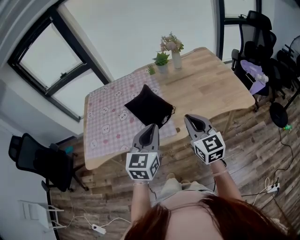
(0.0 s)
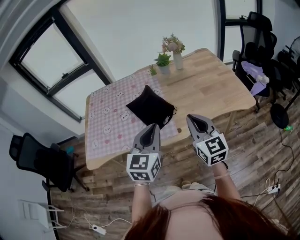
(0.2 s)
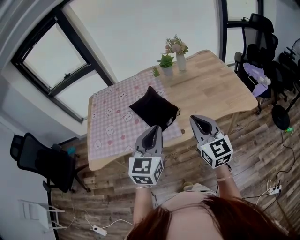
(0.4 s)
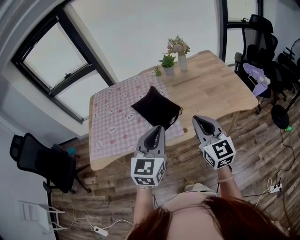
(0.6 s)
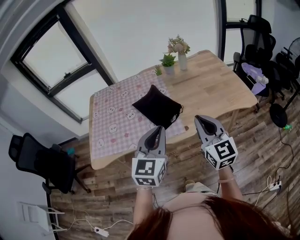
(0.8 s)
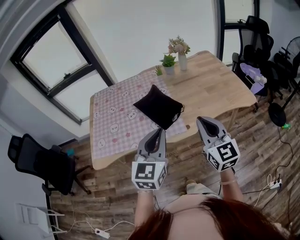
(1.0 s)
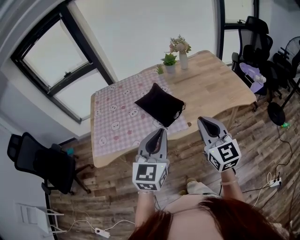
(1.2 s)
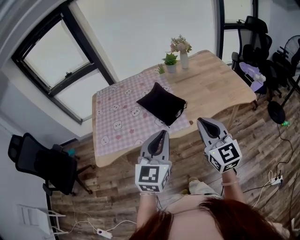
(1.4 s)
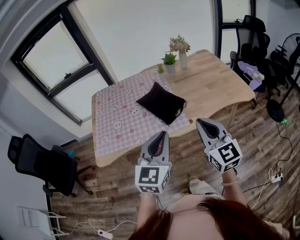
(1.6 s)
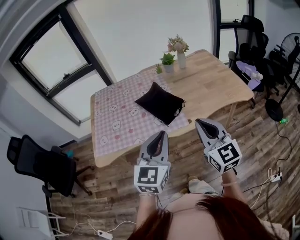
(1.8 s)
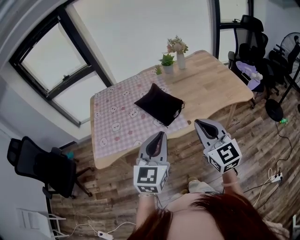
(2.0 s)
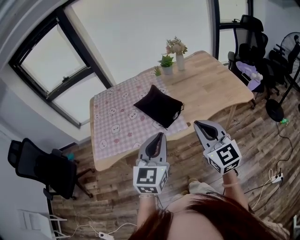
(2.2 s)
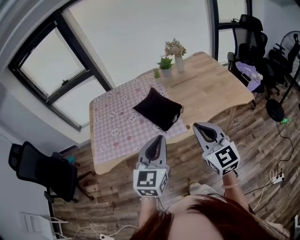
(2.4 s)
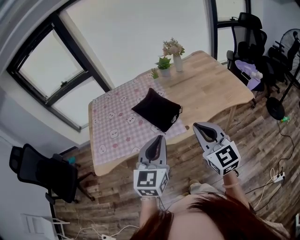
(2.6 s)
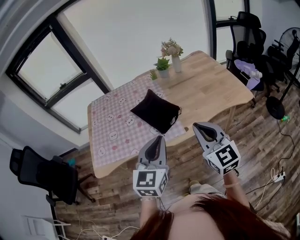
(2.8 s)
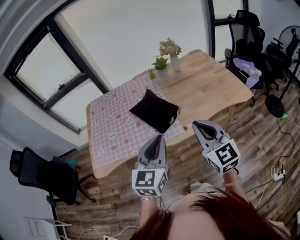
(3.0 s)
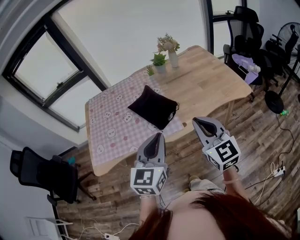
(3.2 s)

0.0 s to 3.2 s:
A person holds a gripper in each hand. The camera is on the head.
0.0 to 1.6 s: The right gripper shifts about 15 cm backward, to the left and upward. Meanwhile the left gripper is displaced backward and to the left by roughly 15 cm.
1.6 to 3.2 s: The left gripper moves approximately 5 cm. Meanwhile the right gripper changes place by approximately 5 cm.

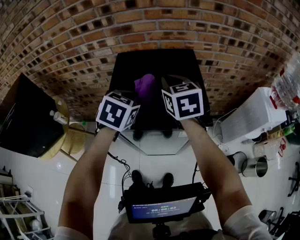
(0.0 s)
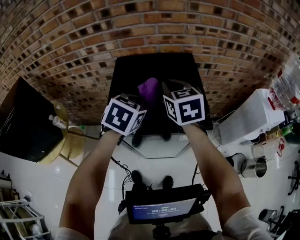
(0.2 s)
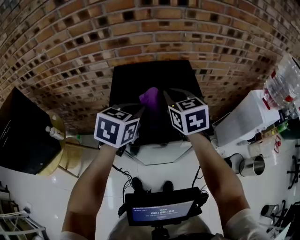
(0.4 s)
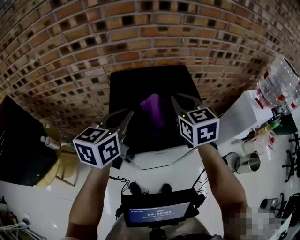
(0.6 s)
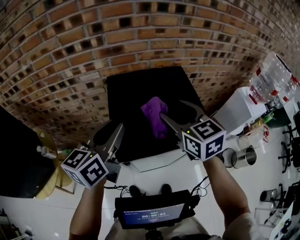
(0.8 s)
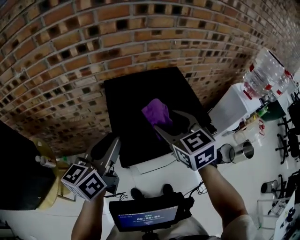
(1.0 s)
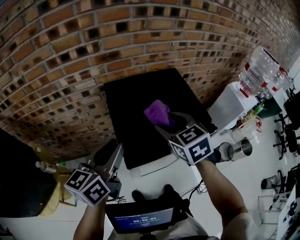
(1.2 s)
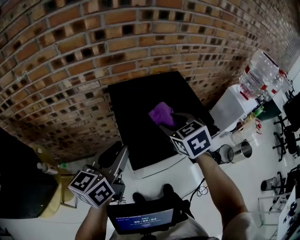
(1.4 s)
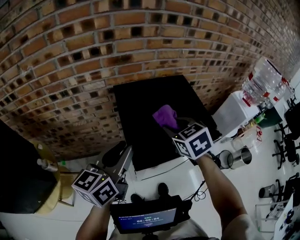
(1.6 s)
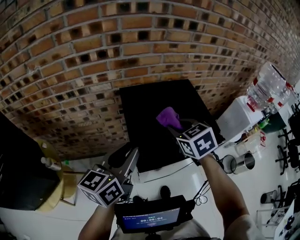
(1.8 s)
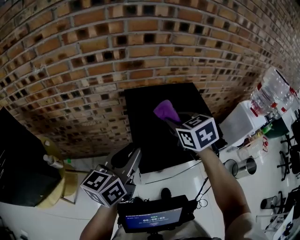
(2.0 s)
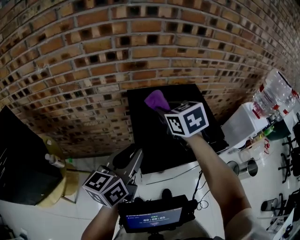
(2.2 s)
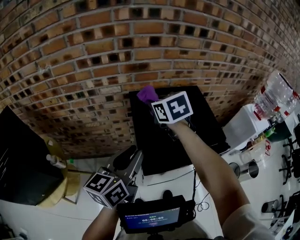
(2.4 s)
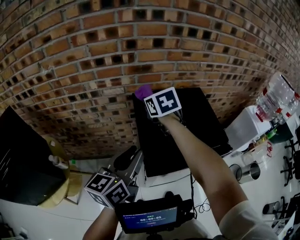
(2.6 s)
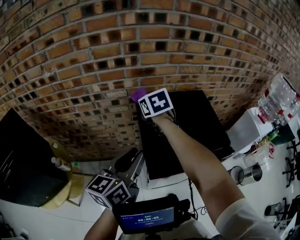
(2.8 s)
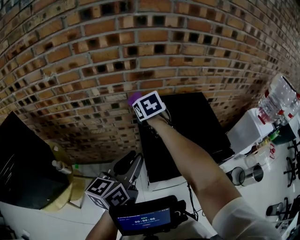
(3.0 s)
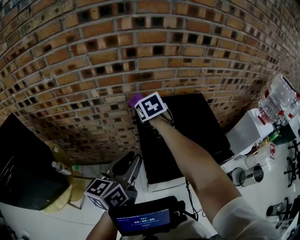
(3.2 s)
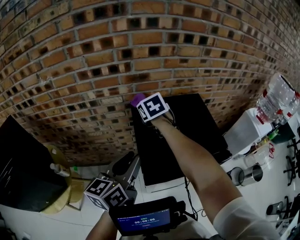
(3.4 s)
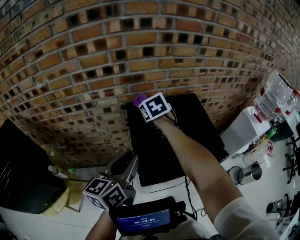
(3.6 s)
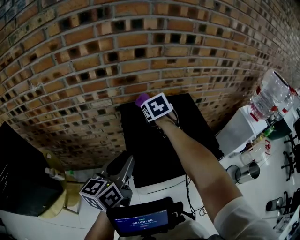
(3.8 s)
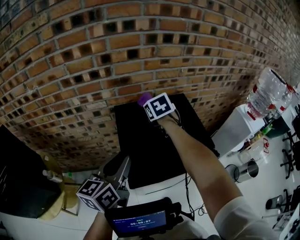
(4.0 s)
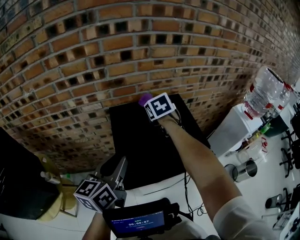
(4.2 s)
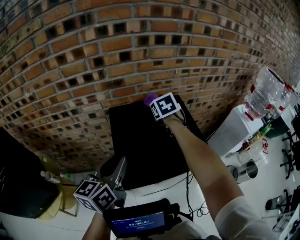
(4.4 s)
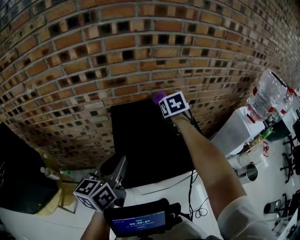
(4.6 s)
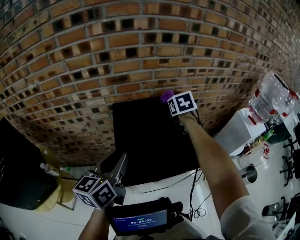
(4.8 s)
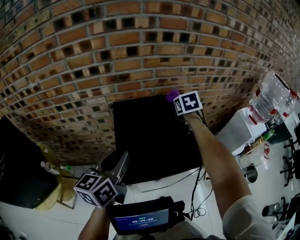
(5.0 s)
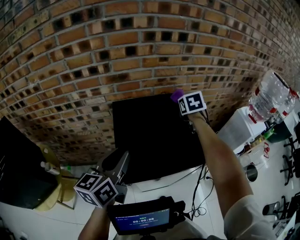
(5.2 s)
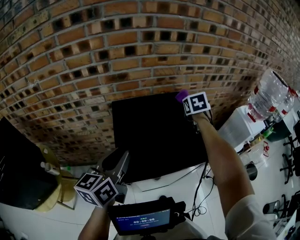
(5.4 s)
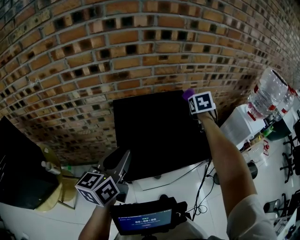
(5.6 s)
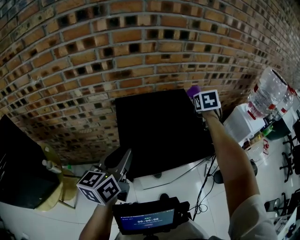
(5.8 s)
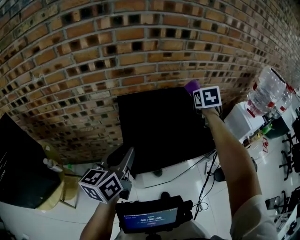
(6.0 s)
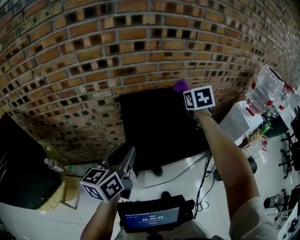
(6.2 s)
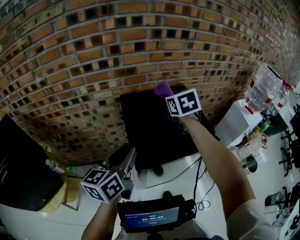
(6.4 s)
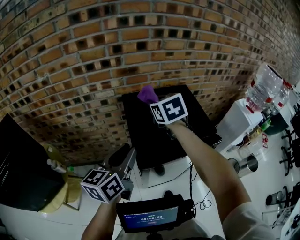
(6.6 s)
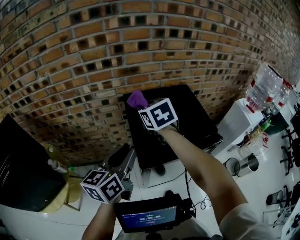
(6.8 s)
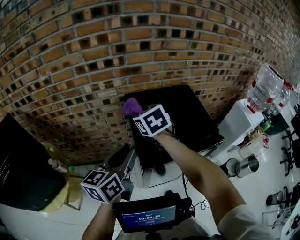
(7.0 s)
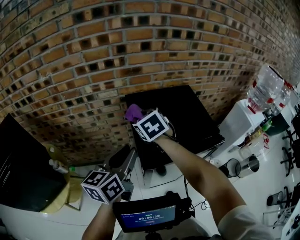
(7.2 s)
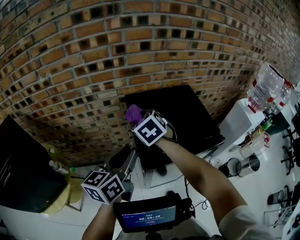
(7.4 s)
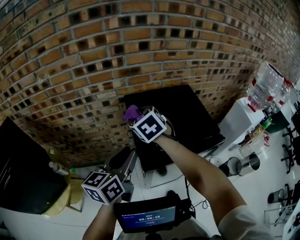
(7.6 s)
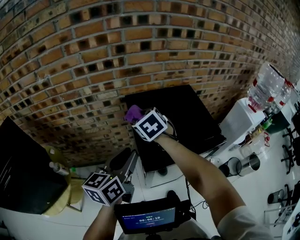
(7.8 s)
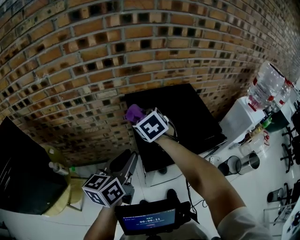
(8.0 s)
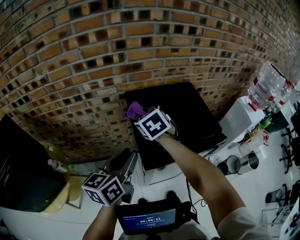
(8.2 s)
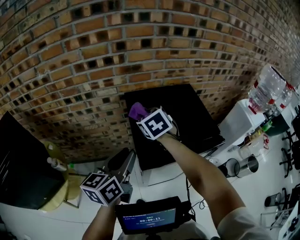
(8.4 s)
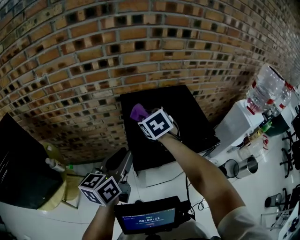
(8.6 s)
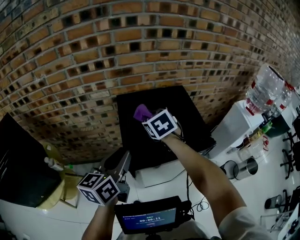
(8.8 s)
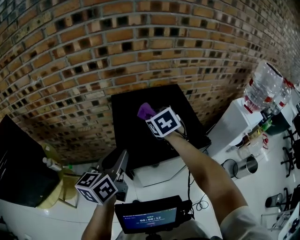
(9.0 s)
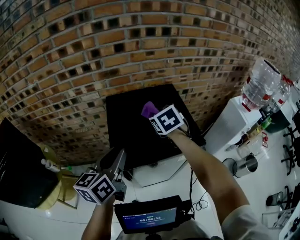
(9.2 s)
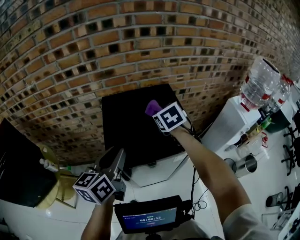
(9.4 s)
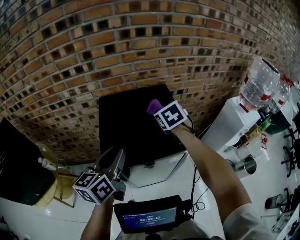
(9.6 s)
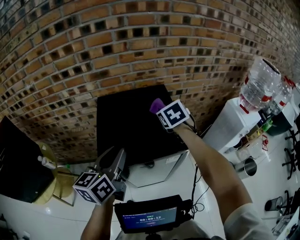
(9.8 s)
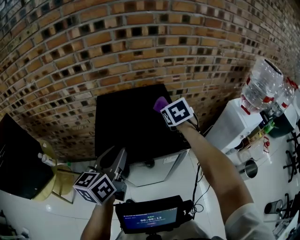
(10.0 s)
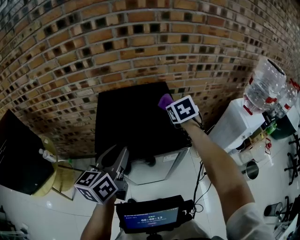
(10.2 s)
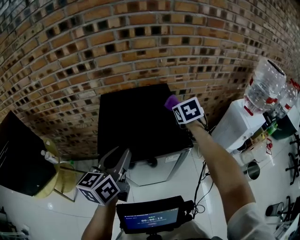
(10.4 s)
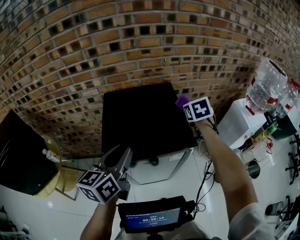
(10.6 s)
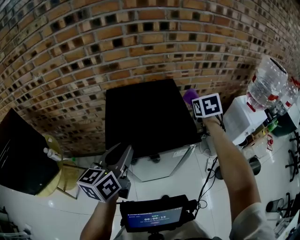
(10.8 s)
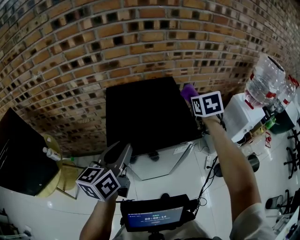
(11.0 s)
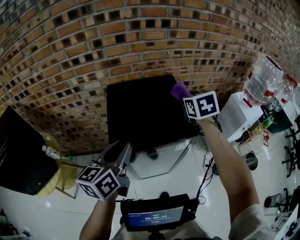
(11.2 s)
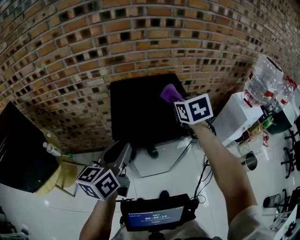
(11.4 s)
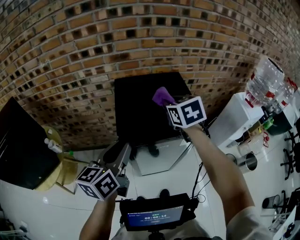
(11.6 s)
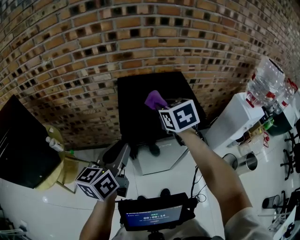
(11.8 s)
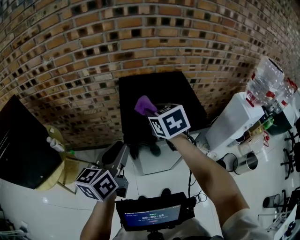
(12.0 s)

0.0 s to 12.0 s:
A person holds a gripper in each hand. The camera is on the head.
0.0 to 1.6 s: The right gripper travels backward by about 5 cm, and opens, while the left gripper shifts approximately 15 cm to the left, backward and upward, points its fingers about 40 degrees further upward, and opens up.
1.6 to 3.0 s: The right gripper is displaced to the left and forward by roughly 25 cm.
3.0 to 4.4 s: The right gripper goes about 20 cm to the right, while the left gripper shifts by about 5 cm.
4.4 to 6.0 s: The right gripper moves to the right, approximately 15 cm.
6.0 to 7.6 s: The right gripper goes some 35 cm to the left and backward, rotates roughly 30 degrees, and opens up.
7.6 to 9.0 s: The right gripper shifts some 15 cm to the right, and closes.
9.0 to 10.4 s: The right gripper travels to the right by some 20 cm. Meanwhile the left gripper is displaced to the right by approximately 10 cm.
10.4 to 12.0 s: The right gripper is displaced to the left and backward by roughly 30 cm. The left gripper moves to the left and backward, about 15 cm.

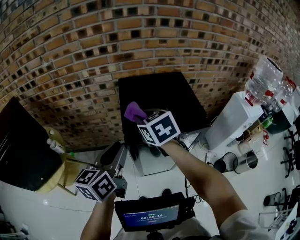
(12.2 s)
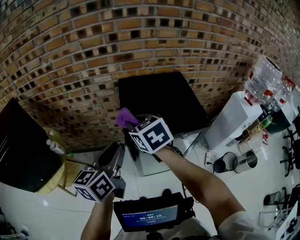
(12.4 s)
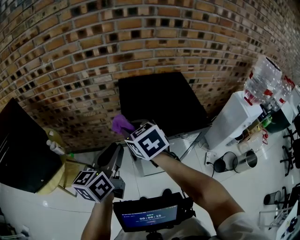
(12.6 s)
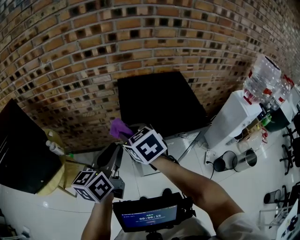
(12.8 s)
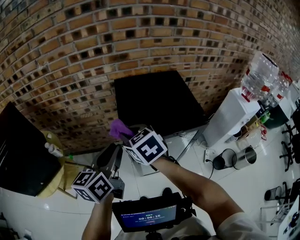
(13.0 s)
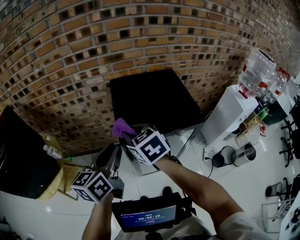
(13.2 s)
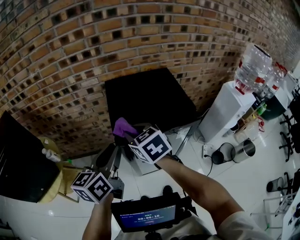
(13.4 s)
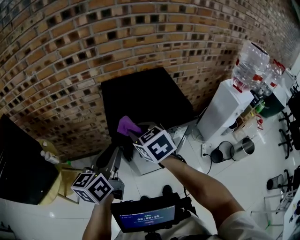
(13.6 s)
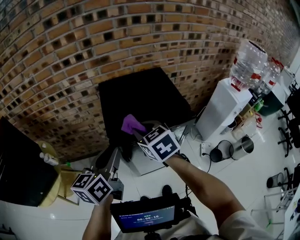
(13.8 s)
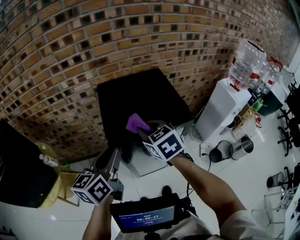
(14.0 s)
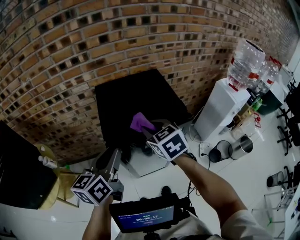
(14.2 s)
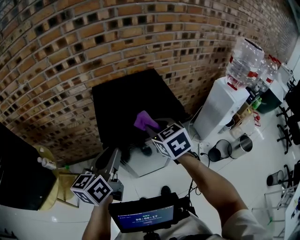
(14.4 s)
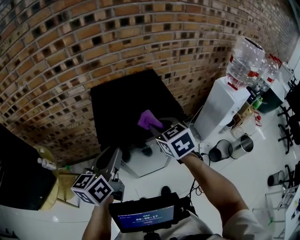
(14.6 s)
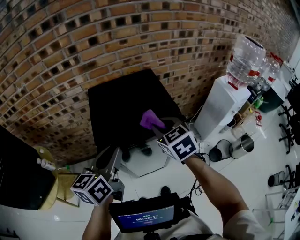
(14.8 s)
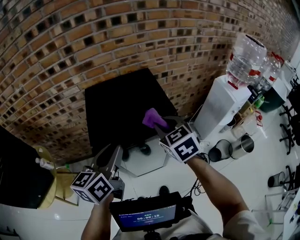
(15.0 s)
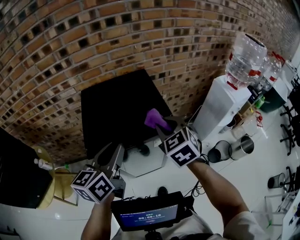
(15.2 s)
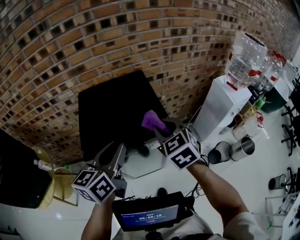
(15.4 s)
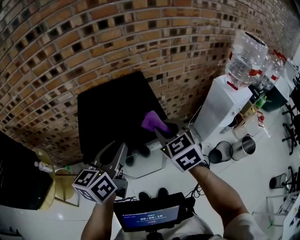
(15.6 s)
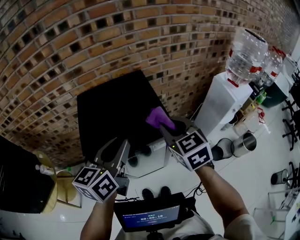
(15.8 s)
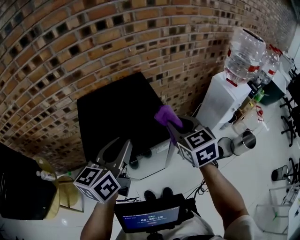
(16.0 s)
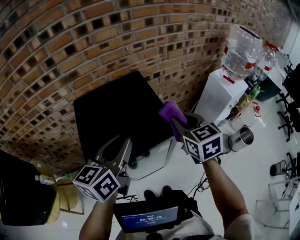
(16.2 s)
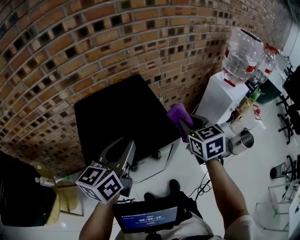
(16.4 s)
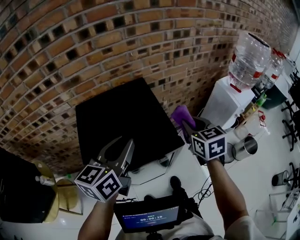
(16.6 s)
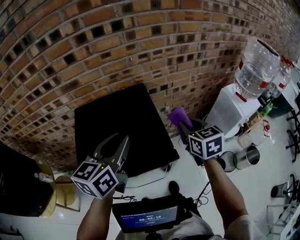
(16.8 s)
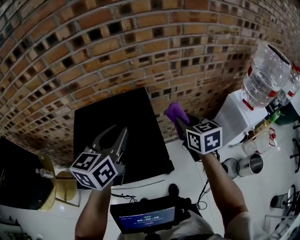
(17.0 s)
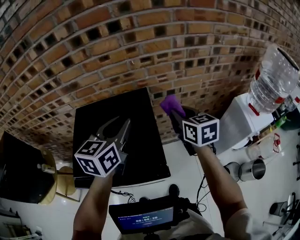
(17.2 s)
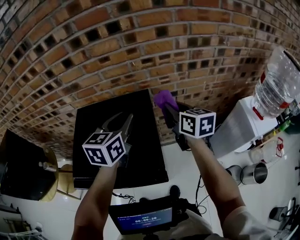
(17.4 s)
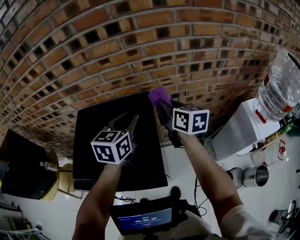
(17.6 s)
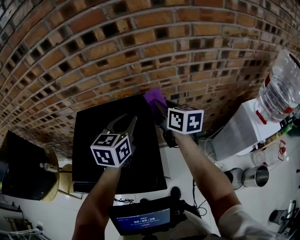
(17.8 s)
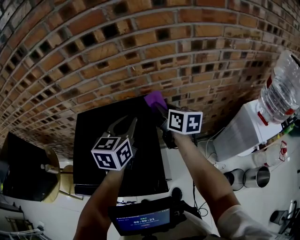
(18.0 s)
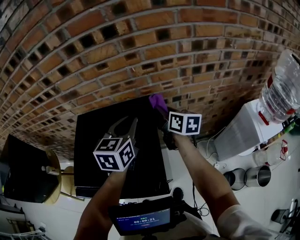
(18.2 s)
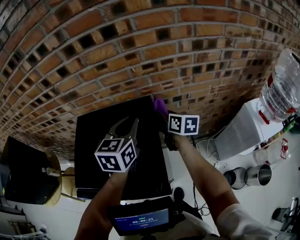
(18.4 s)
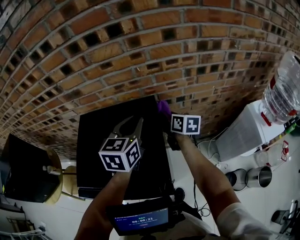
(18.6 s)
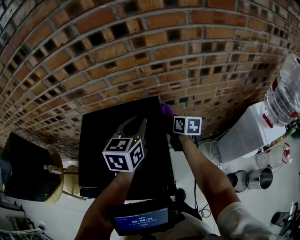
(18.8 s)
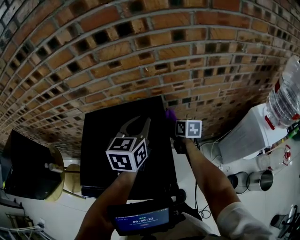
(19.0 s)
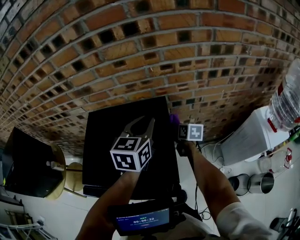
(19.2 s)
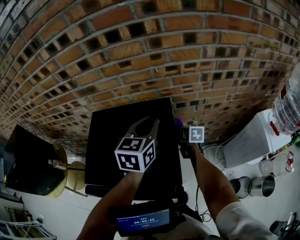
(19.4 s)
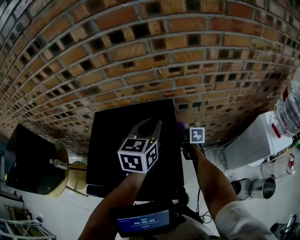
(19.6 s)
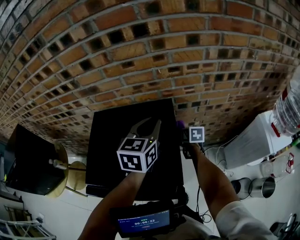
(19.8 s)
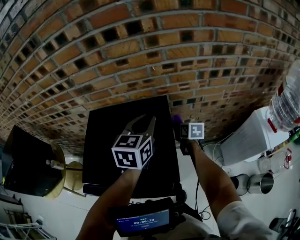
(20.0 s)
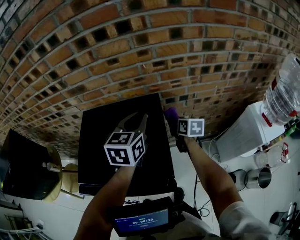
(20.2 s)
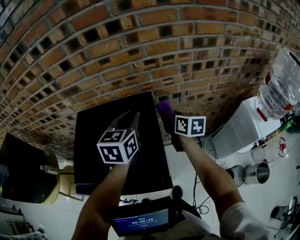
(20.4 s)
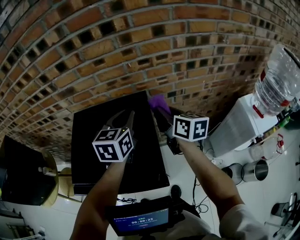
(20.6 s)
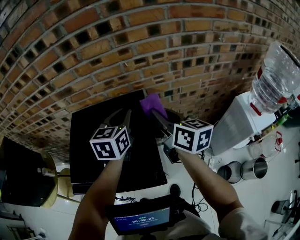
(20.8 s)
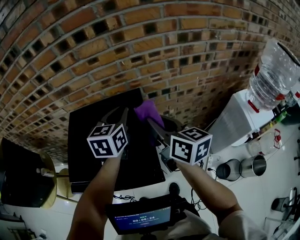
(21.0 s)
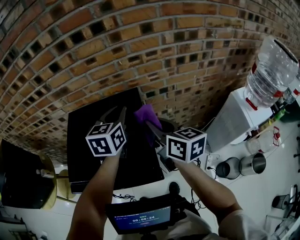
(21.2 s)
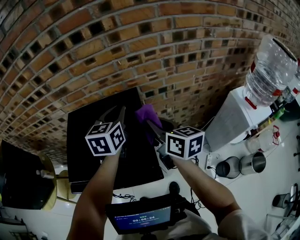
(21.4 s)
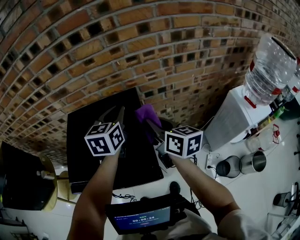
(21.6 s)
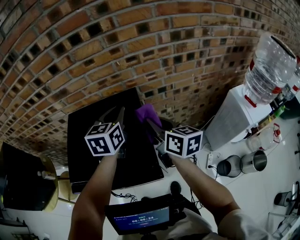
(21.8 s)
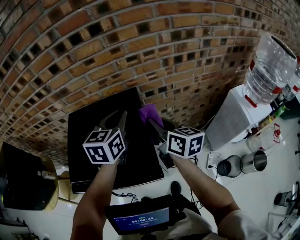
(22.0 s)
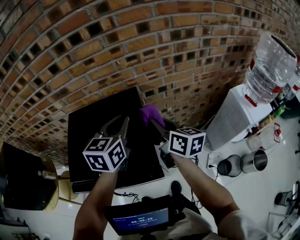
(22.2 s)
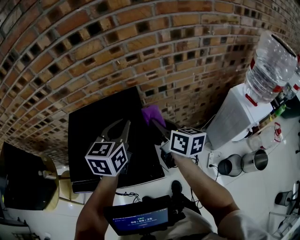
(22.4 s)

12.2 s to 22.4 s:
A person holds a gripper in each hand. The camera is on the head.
12.2 to 13.6 s: The right gripper travels to the left and back again, roughly 5 cm each way.
13.6 to 15.2 s: The right gripper heads to the right, covering approximately 20 cm, while the left gripper moves to the right, some 10 cm.
15.2 to 16.6 s: The left gripper goes about 10 cm forward. Meanwhile the right gripper is displaced to the right and forward by some 15 cm, and rotates some 30 degrees.
16.6 to 18.0 s: The left gripper shifts by about 20 cm, and rotates some 30 degrees, while the right gripper shifts by about 25 cm, and changes its angle by some 40 degrees.
18.0 to 19.4 s: The right gripper travels downward by some 20 cm, and swivels some 30 degrees.
19.4 to 21.0 s: The right gripper shifts some 30 cm upward and backward, and angles its fingers upward, by about 30 degrees.
21.0 to 22.4 s: The right gripper heads downward, covering roughly 5 cm. The left gripper travels backward by some 5 cm.
